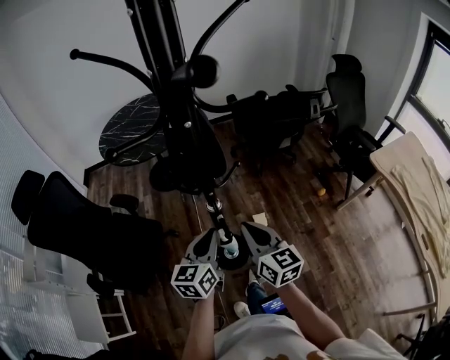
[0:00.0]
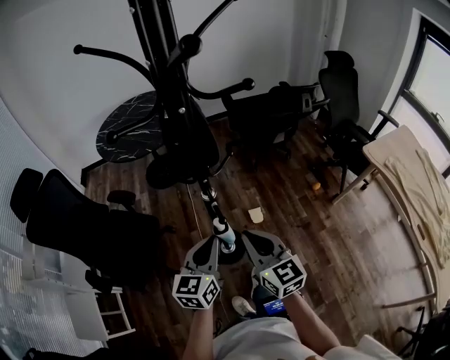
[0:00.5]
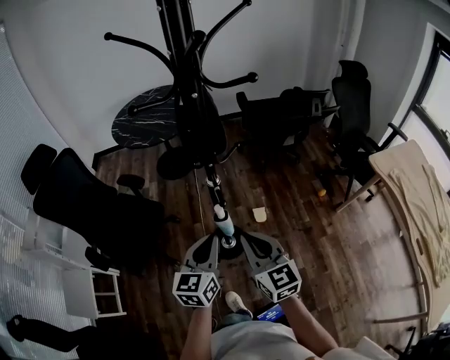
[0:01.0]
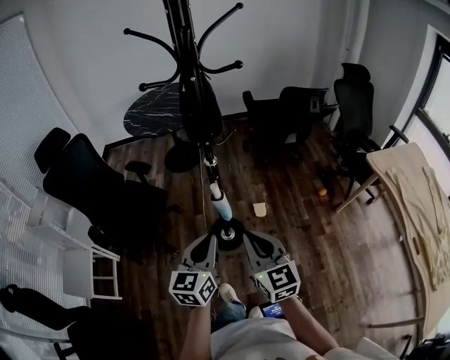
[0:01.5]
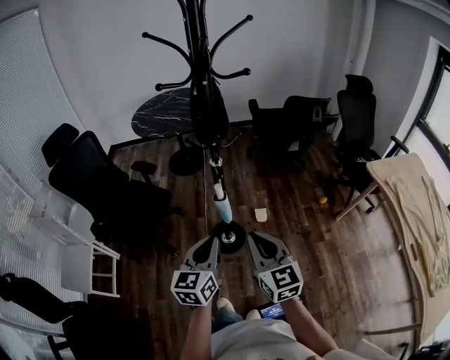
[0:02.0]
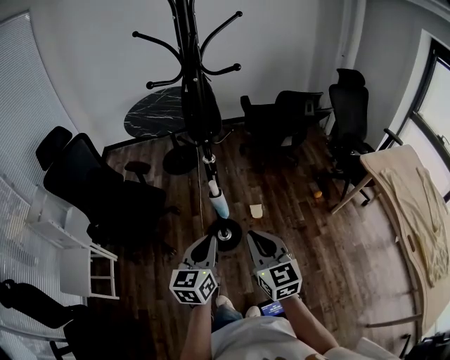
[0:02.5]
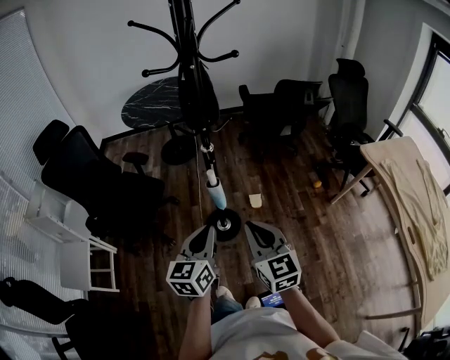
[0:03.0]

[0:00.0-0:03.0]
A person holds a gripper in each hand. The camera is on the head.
0:00.0 to 0:01.5: Both grippers move backward, about 25 cm.
0:01.5 to 0:03.0: The grippers make only small movements.

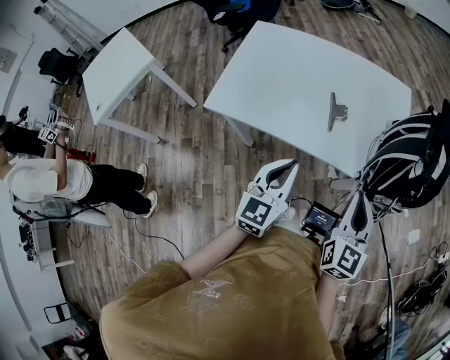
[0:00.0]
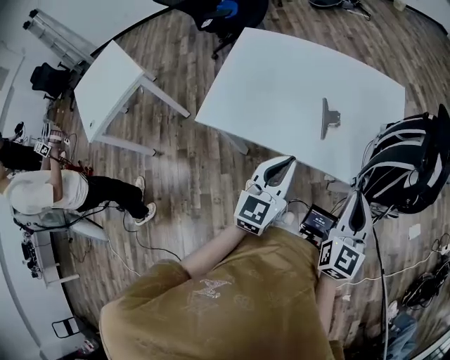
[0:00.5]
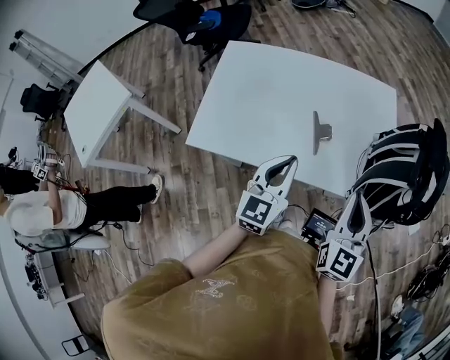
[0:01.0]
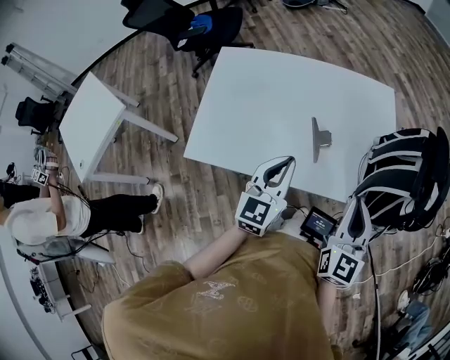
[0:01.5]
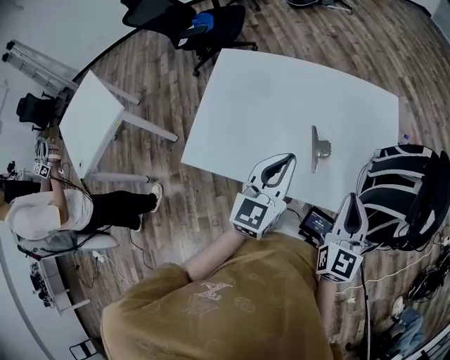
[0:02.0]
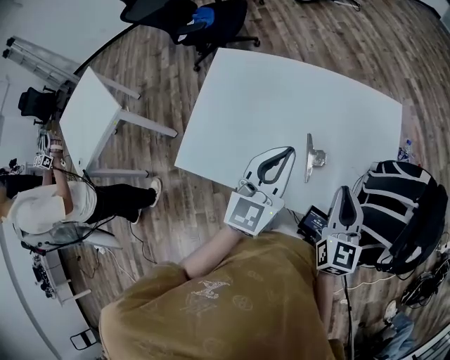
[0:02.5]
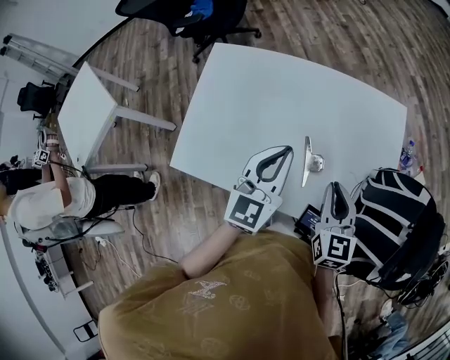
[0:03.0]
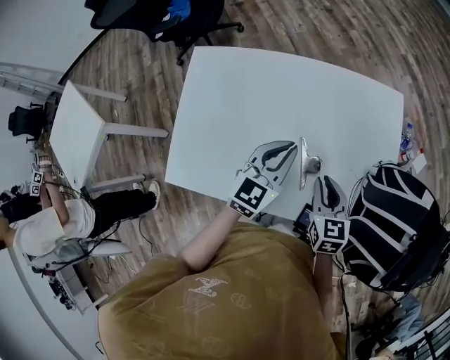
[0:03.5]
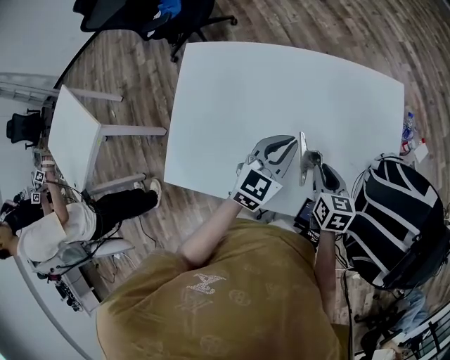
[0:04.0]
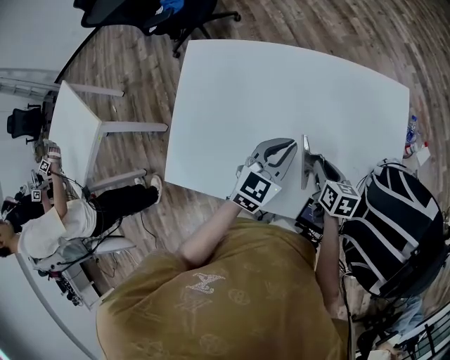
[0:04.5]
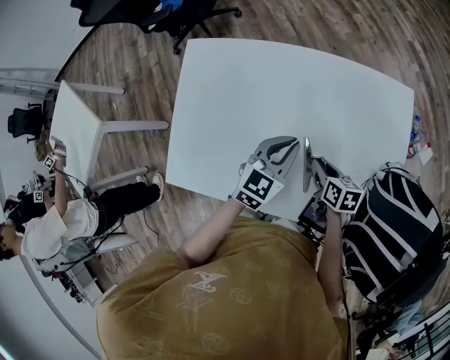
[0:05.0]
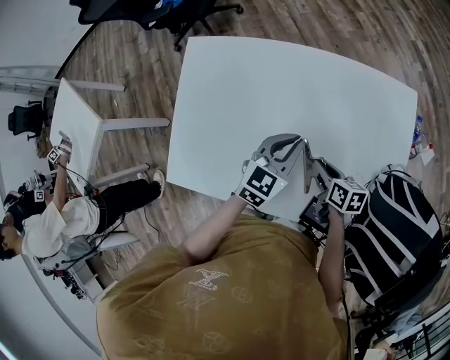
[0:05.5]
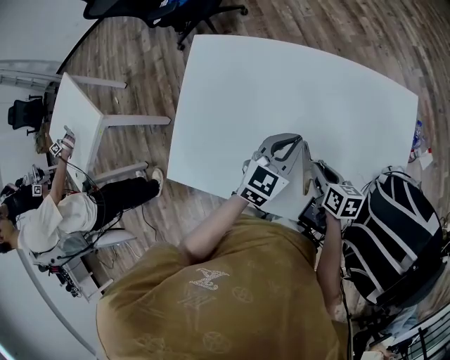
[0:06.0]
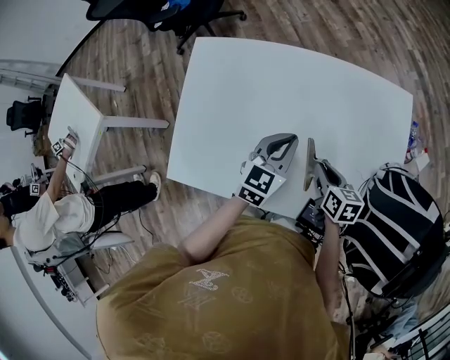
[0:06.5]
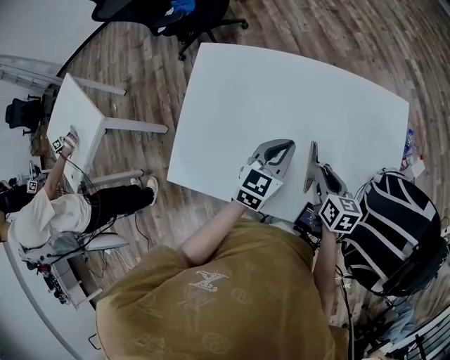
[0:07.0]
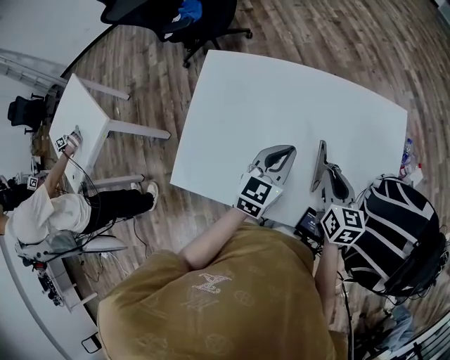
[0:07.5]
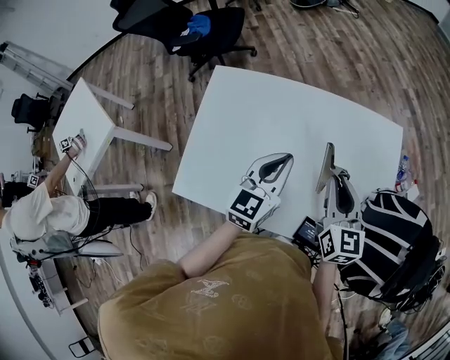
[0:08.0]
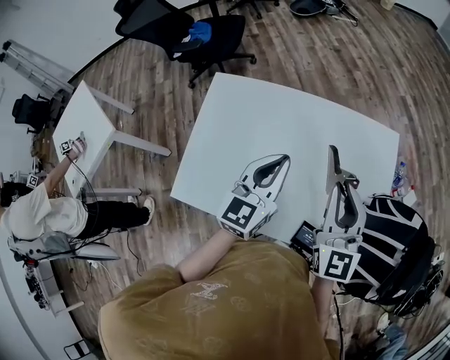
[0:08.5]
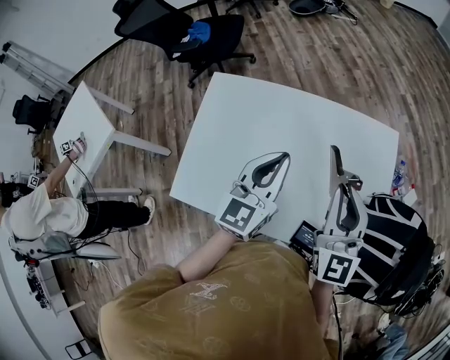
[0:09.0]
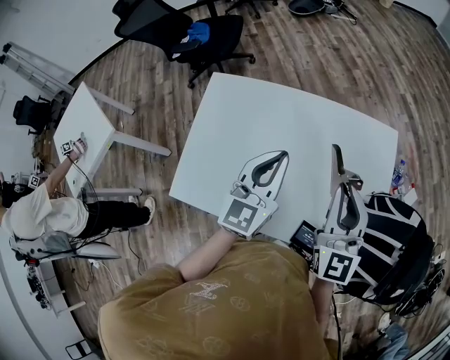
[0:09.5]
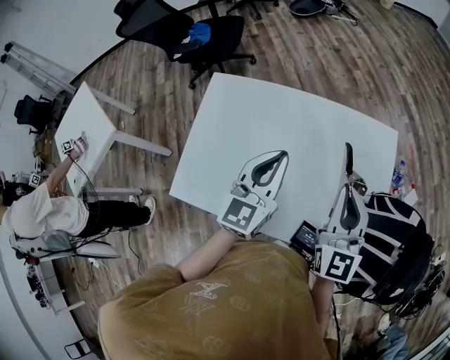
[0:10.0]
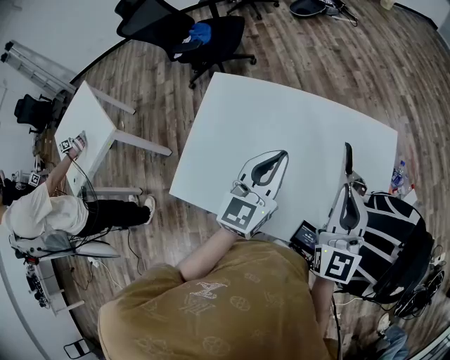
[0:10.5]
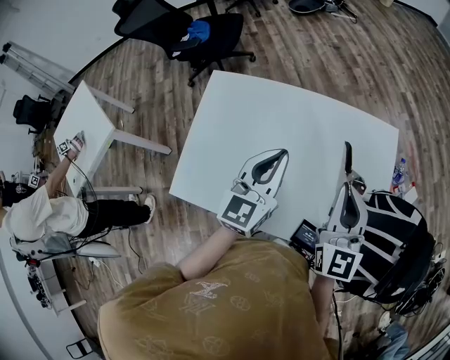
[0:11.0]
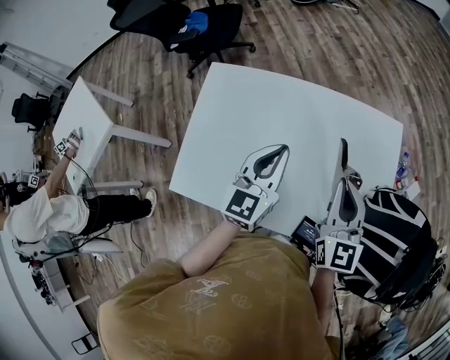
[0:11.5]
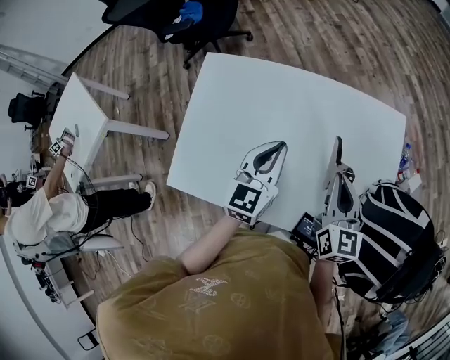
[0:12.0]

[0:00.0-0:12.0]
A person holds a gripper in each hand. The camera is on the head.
0:00.0 to 0:02.0: Both grippers move forward, approximately 15 cm.
0:02.0 to 0:04.0: The left gripper travels forward and downward by roughly 20 cm, and changes its angle by about 20 degrees. Meanwhile the right gripper moves downward and forward, roughly 25 cm, and swivels about 40 degrees.
0:04.0 to 0:06.0: The right gripper changes place by approximately 5 cm.
0:06.0 to 0:08.0: The right gripper travels upward by approximately 20 cm, and rotates approximately 50 degrees, while the left gripper travels upward by about 10 cm.
0:08.0 to 0:10.0: Both grippers travel together upward, about 10 cm. The right gripper turns by roughly 20 degrees.
0:10.0 to 0:12.0: Both grippers move downward, approximately 10 cm. The right gripper turns by about 20 degrees.

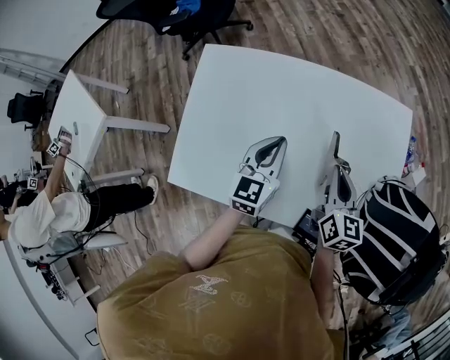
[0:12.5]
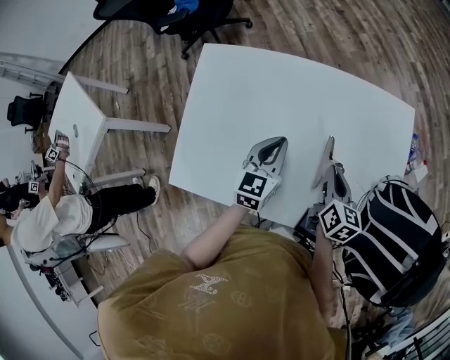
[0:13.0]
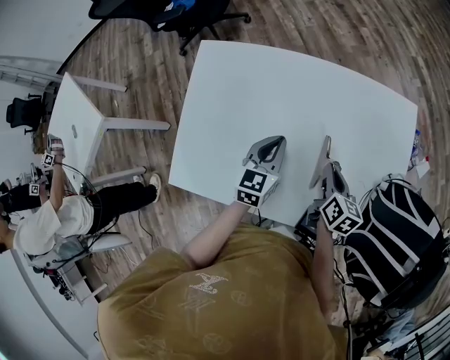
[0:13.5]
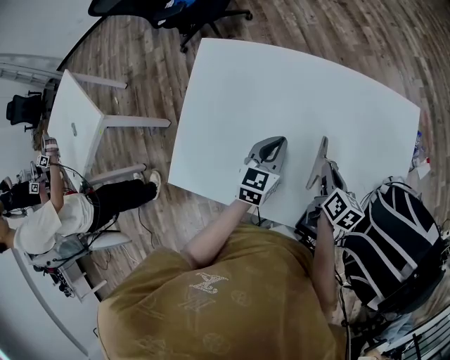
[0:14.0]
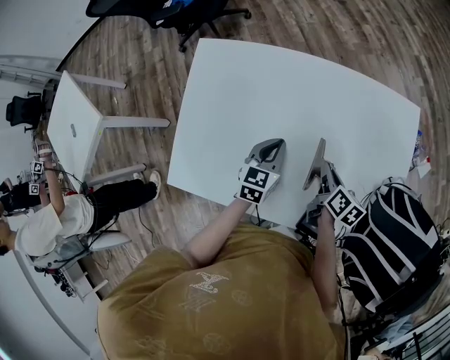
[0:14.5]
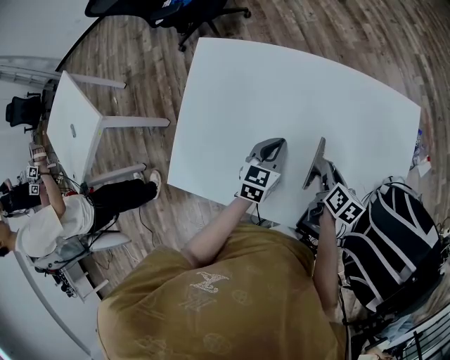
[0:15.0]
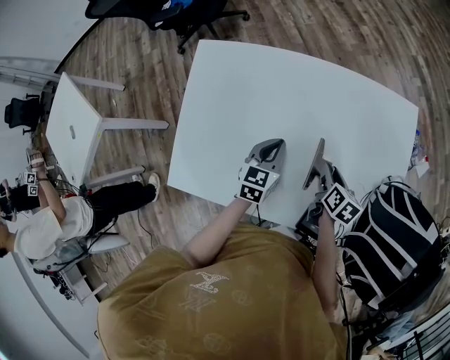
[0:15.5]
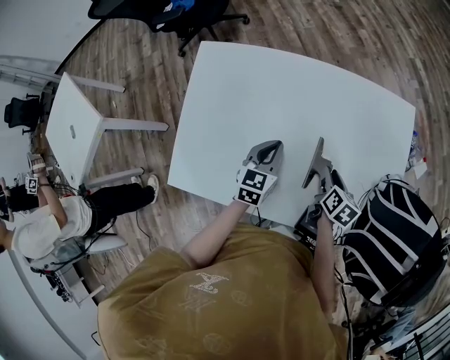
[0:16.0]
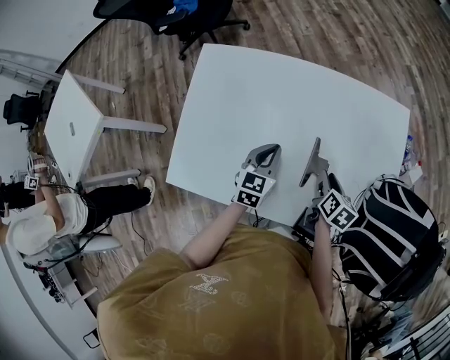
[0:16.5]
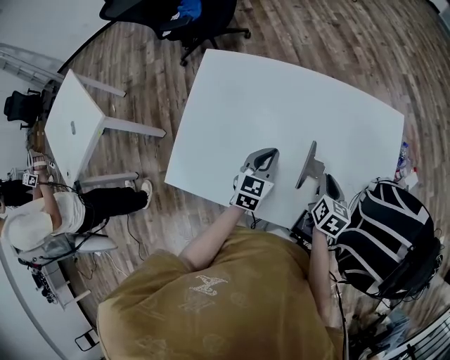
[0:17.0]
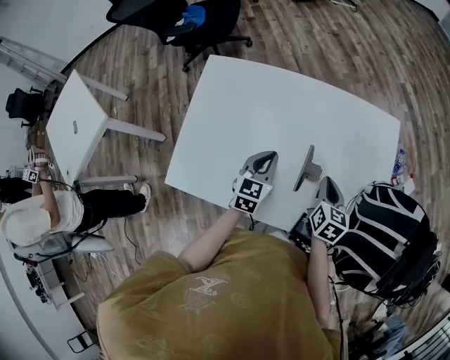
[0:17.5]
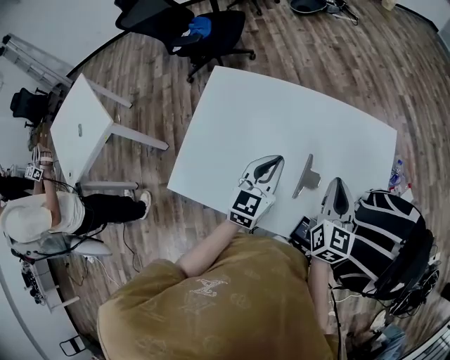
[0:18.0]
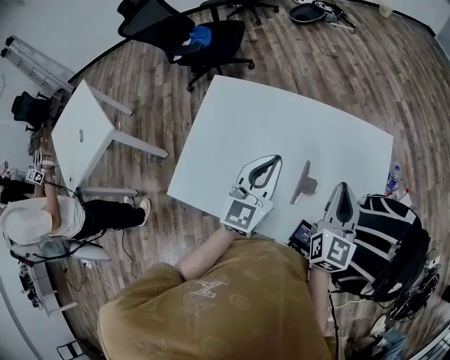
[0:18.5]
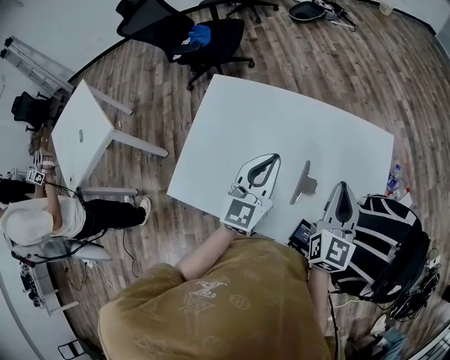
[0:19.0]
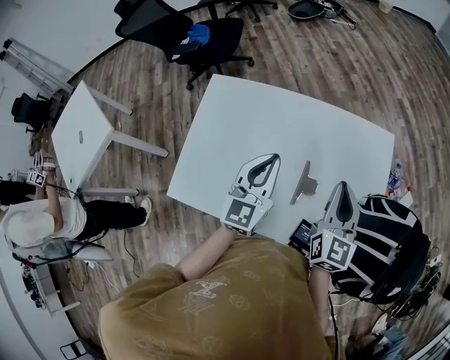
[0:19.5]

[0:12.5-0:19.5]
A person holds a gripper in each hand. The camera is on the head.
0:12.5 to 0:14.5: The grippers both shift downward by approximately 15 cm. The right gripper swivels roughly 30 degrees.
0:14.5 to 0:16.0: The right gripper opens.
0:16.0 to 0:17.5: The right gripper is displaced upward by roughly 10 cm, turns by some 20 degrees, and closes up.
0:17.5 to 0:19.5: Both grippers move upward, roughly 20 cm. The right gripper swivels about 30 degrees. Meanwhile the left gripper turns by approximately 20 degrees.

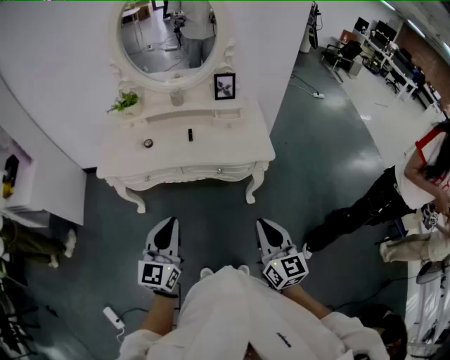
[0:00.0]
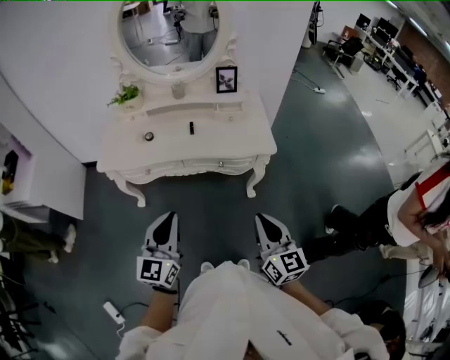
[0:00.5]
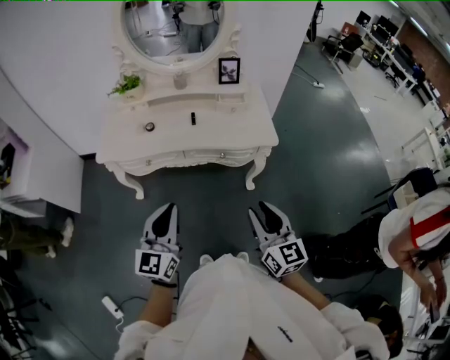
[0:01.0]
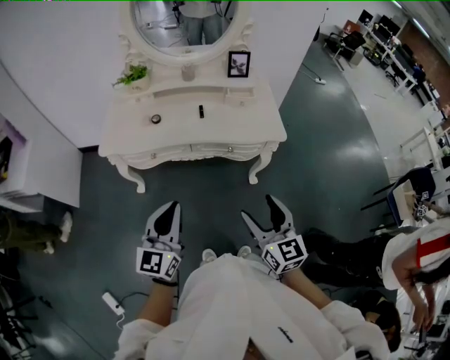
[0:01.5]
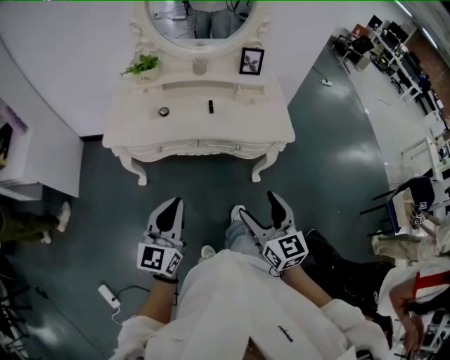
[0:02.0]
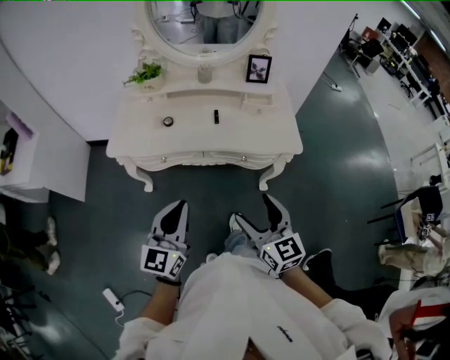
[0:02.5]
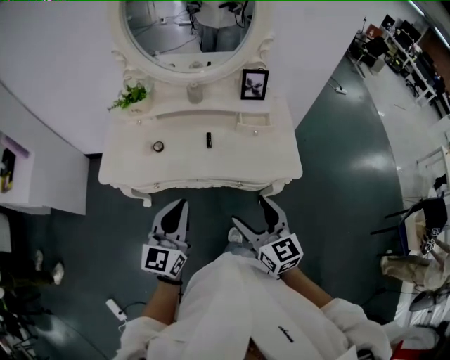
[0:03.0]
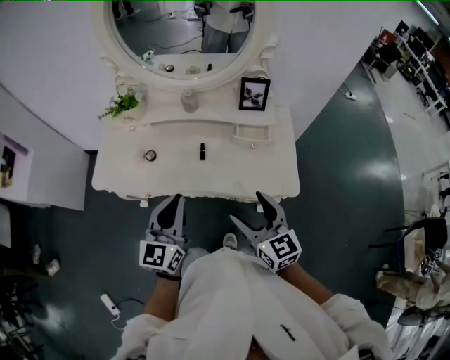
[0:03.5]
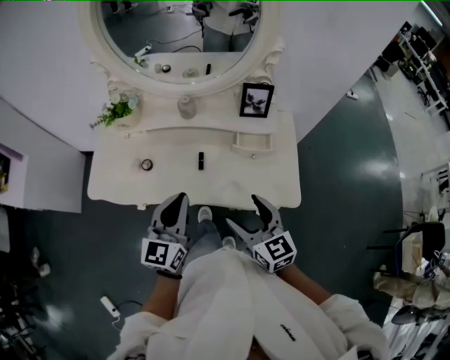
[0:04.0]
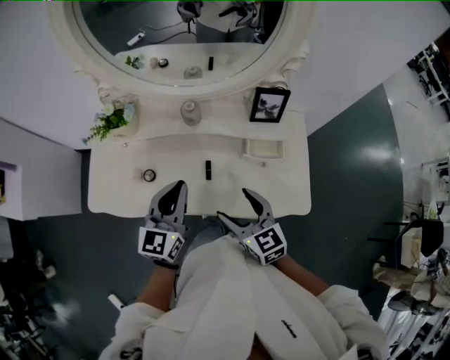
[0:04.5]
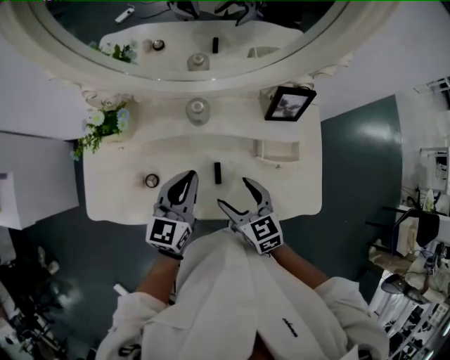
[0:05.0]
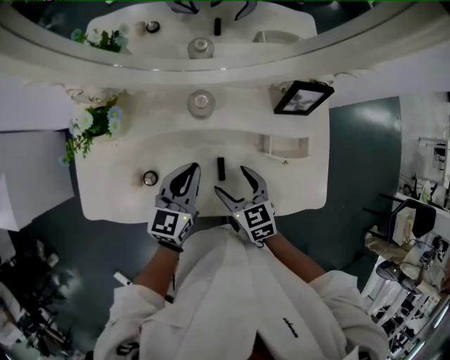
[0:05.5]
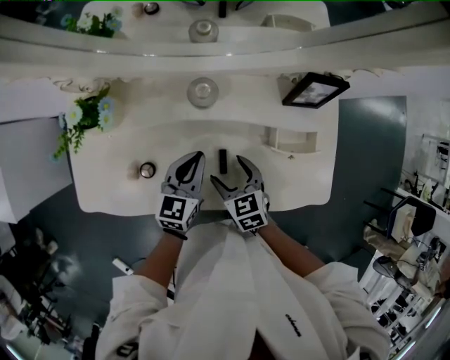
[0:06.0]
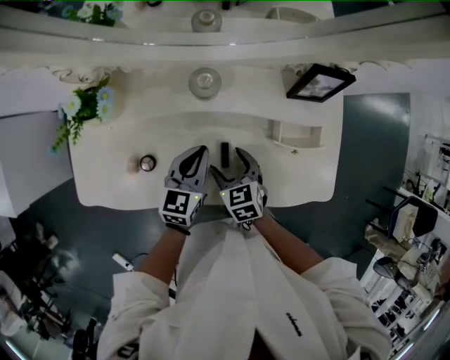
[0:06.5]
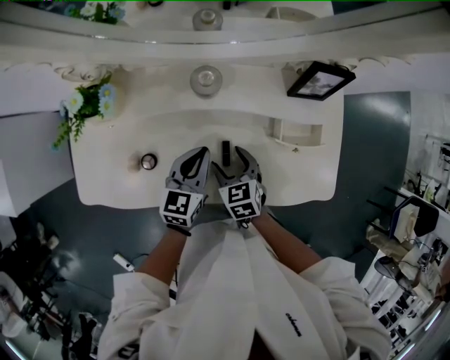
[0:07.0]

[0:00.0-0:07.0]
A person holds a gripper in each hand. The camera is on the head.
0:00.0 to 0:02.0: Both grippers travel together to the left, some 10 cm. The right gripper opens up.
0:02.0 to 0:03.5: The left gripper heads forward and to the right, covering approximately 30 cm; the right gripper travels forward by some 25 cm.
0:03.5 to 0:05.0: The left gripper shifts some 25 cm forward, while the right gripper shifts approximately 30 cm forward and downward, and rotates approximately 20 degrees.
0:05.0 to 0:07.0: Both grippers travel together downward, some 15 cm.
